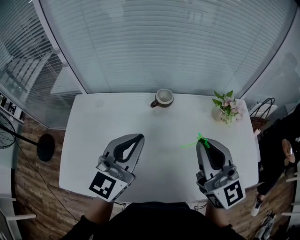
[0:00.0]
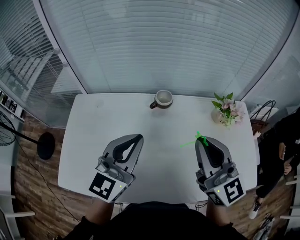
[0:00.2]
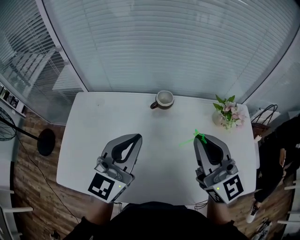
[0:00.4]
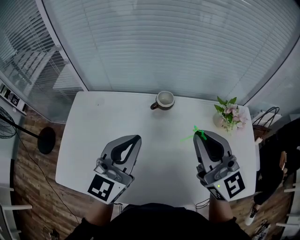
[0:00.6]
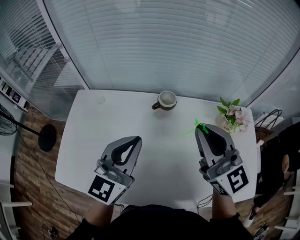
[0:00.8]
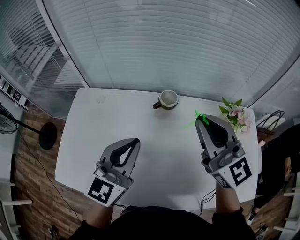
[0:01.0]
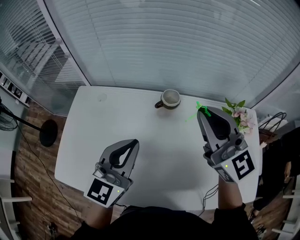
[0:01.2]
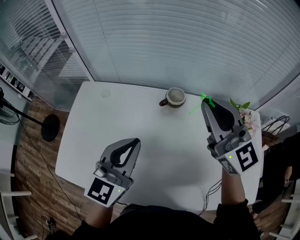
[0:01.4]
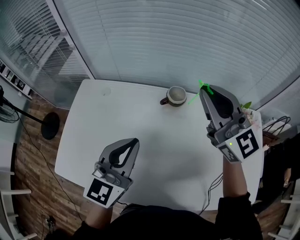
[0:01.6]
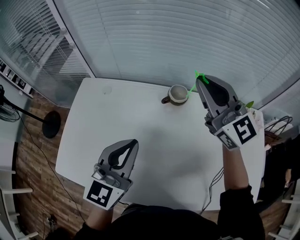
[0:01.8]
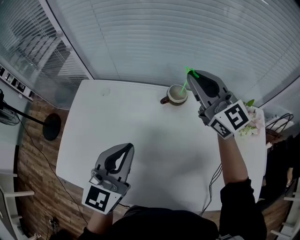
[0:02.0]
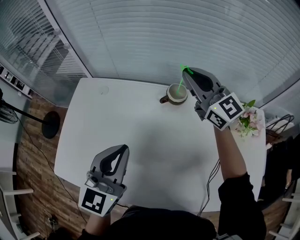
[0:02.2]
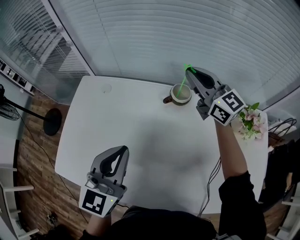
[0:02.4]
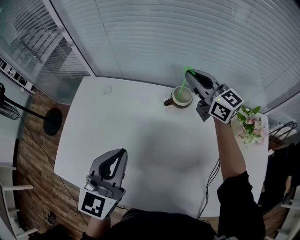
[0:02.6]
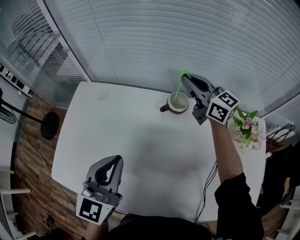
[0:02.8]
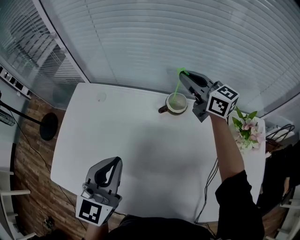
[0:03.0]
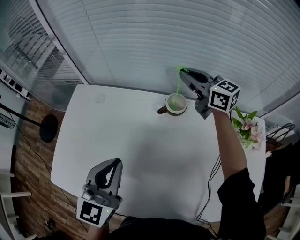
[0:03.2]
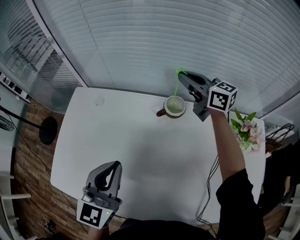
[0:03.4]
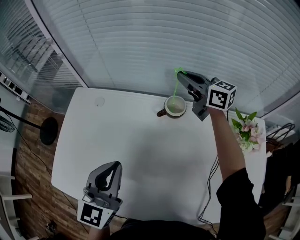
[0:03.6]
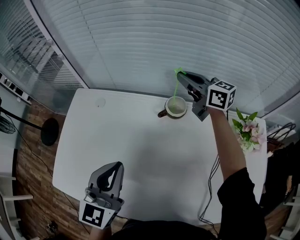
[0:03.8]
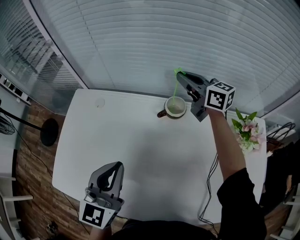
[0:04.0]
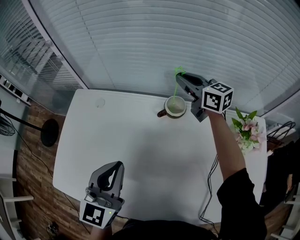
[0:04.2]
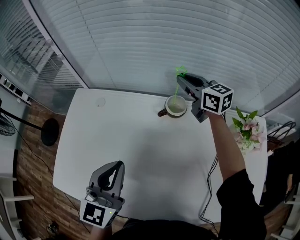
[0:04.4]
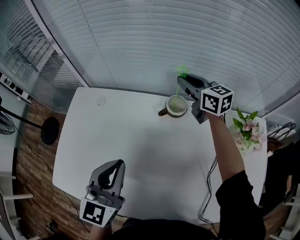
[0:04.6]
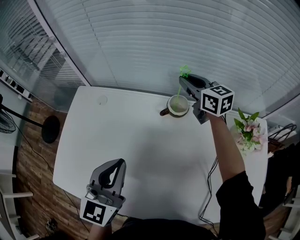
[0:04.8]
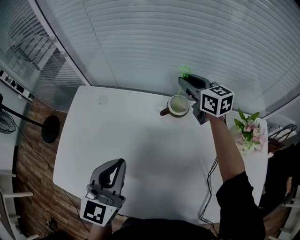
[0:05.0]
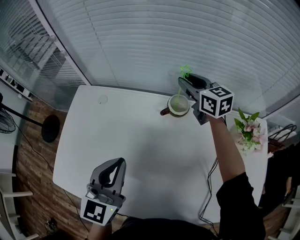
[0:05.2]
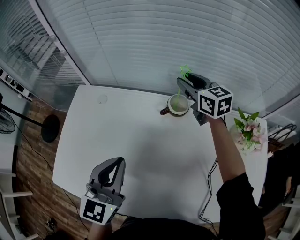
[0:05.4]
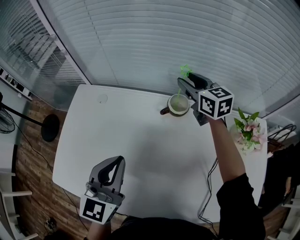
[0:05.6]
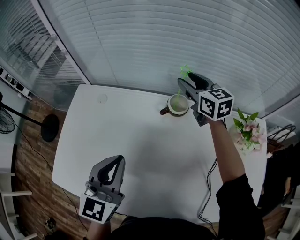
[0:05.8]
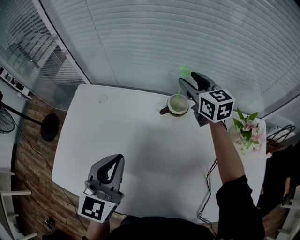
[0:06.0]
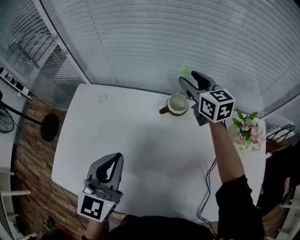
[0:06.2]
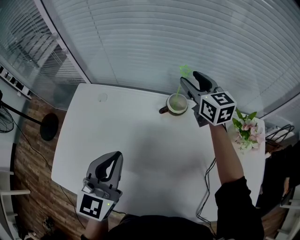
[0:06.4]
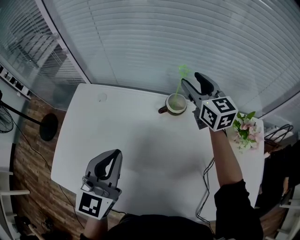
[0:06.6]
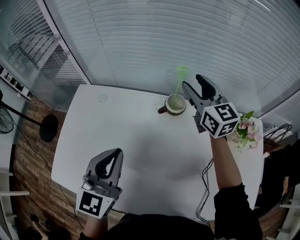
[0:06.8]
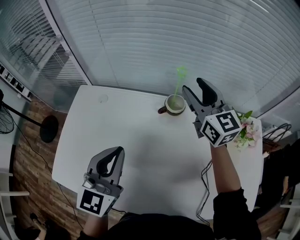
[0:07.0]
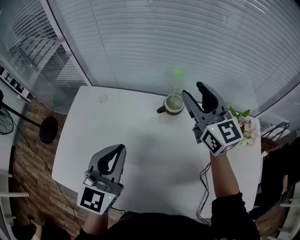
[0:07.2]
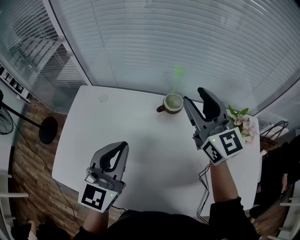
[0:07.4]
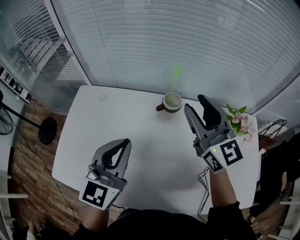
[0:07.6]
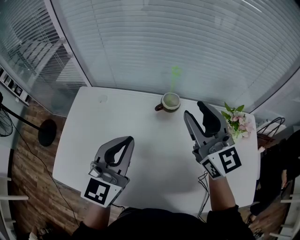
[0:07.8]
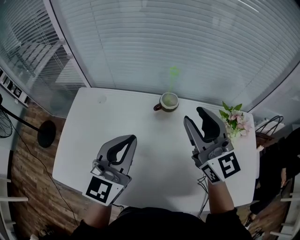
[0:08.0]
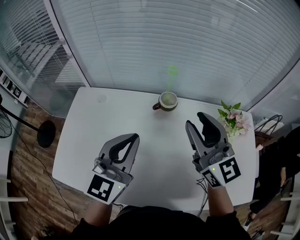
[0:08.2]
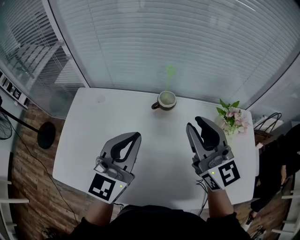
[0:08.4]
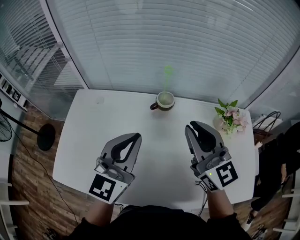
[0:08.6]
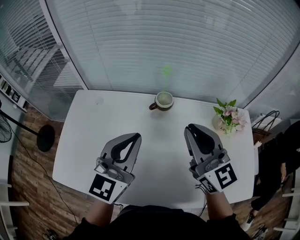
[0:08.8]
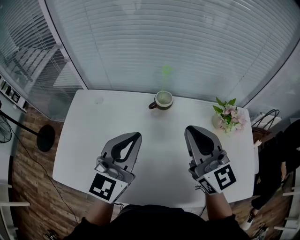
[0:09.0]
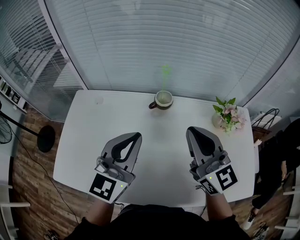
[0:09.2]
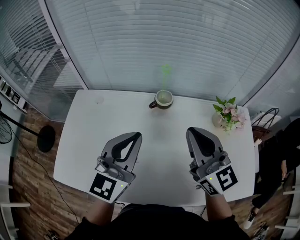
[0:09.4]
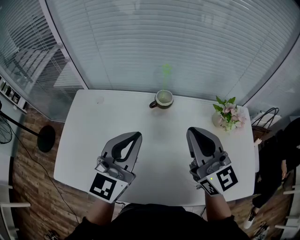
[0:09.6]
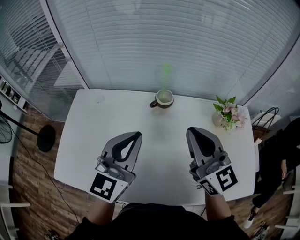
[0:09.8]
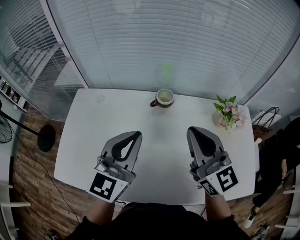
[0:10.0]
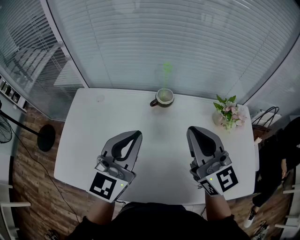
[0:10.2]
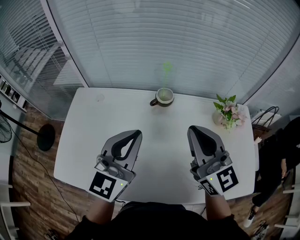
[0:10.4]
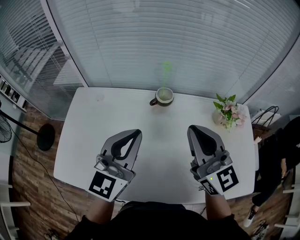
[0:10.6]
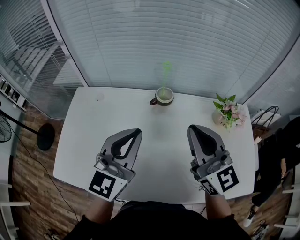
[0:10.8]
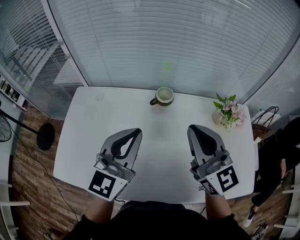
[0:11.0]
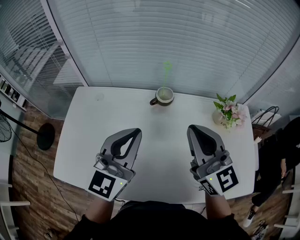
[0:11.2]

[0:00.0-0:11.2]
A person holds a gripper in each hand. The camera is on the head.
0:00.0 to 0:01.6: The right gripper goes roughly 15 cm forward, and turns by some 20 degrees.
0:01.6 to 0:03.2: The right gripper goes some 25 cm forward and downward, and rotates some 30 degrees.
0:03.2 to 0:04.8: The right gripper ends up approximately 5 cm from where it was.
0:04.8 to 0:06.4: The right gripper opens up.
0:06.4 to 0:08.0: The left gripper travels upward by some 5 cm, while the right gripper shifts approximately 25 cm backward and upward.
0:08.0 to 0:09.6: The right gripper moves backward, roughly 5 cm, and closes up.
0:09.6 to 0:11.2: The two grippers keep their place.

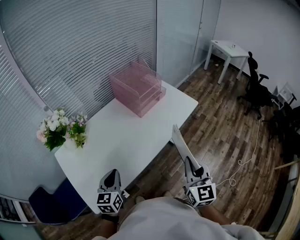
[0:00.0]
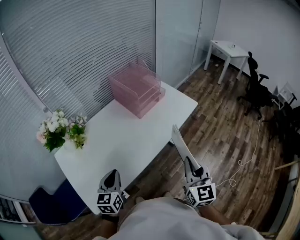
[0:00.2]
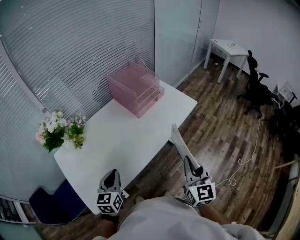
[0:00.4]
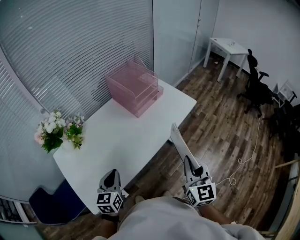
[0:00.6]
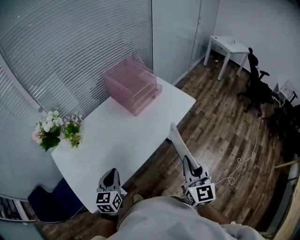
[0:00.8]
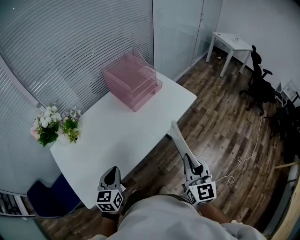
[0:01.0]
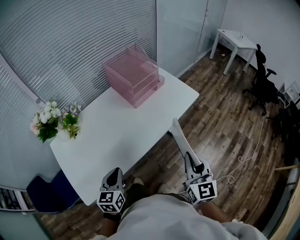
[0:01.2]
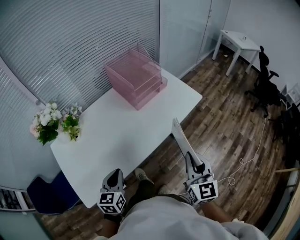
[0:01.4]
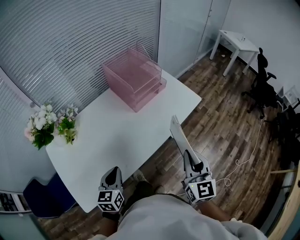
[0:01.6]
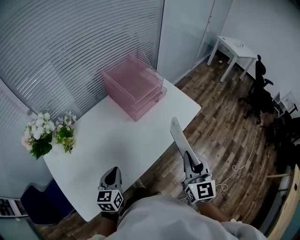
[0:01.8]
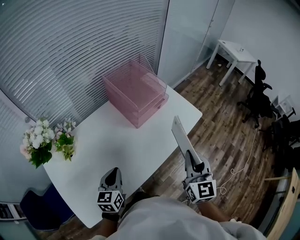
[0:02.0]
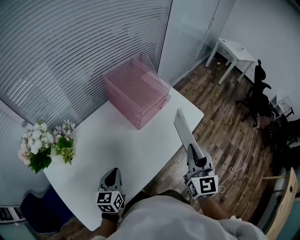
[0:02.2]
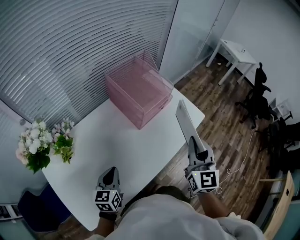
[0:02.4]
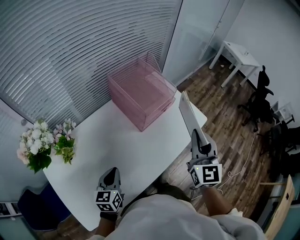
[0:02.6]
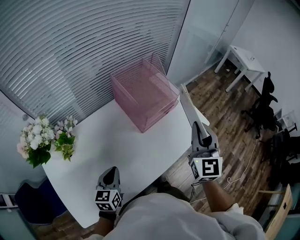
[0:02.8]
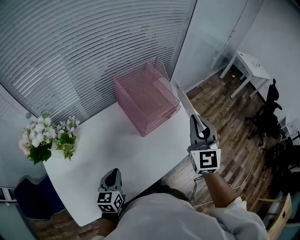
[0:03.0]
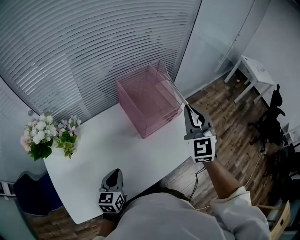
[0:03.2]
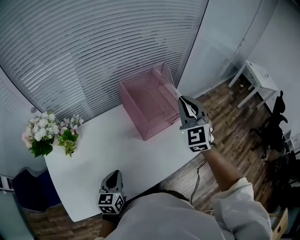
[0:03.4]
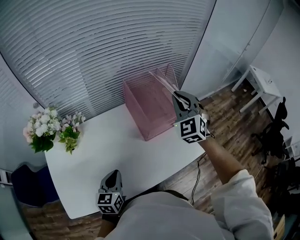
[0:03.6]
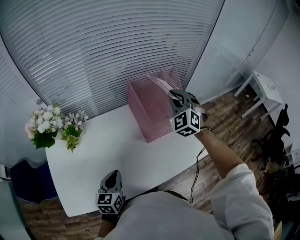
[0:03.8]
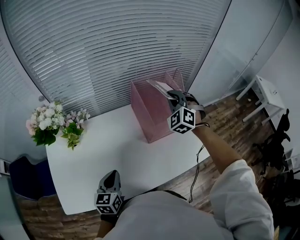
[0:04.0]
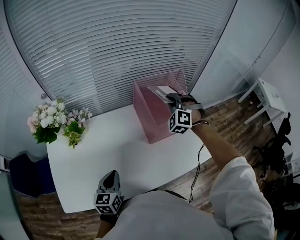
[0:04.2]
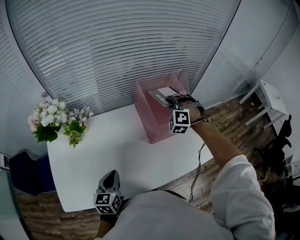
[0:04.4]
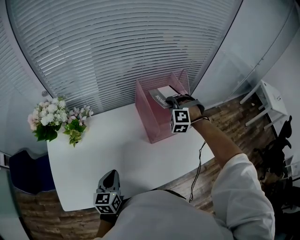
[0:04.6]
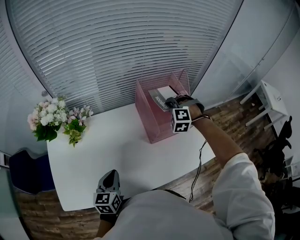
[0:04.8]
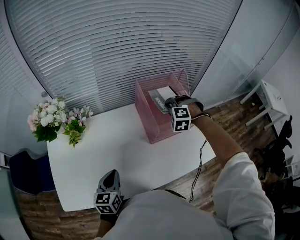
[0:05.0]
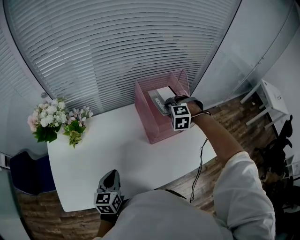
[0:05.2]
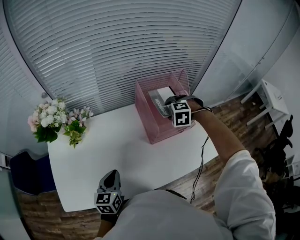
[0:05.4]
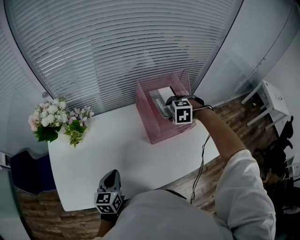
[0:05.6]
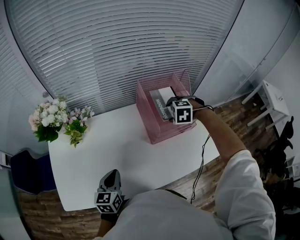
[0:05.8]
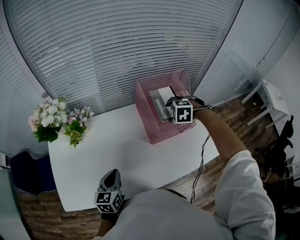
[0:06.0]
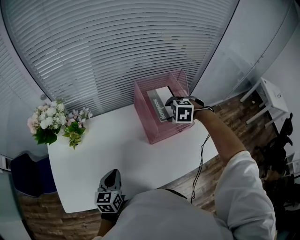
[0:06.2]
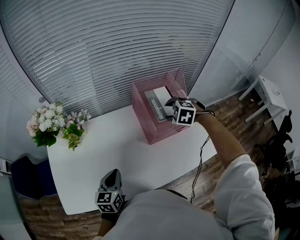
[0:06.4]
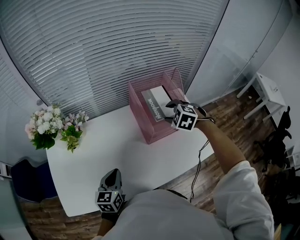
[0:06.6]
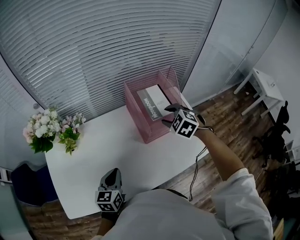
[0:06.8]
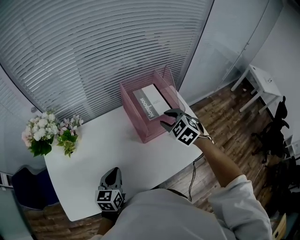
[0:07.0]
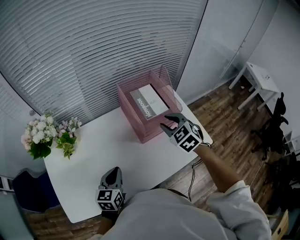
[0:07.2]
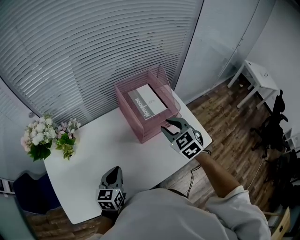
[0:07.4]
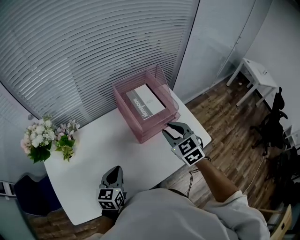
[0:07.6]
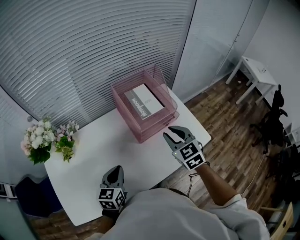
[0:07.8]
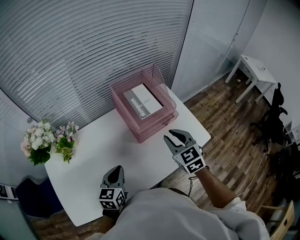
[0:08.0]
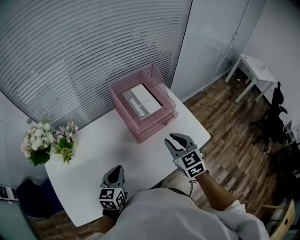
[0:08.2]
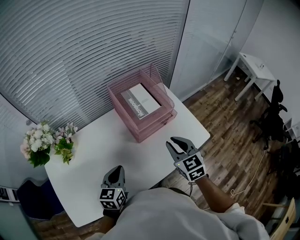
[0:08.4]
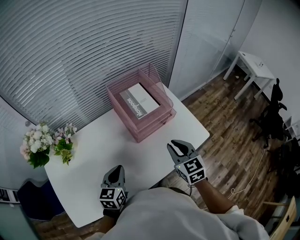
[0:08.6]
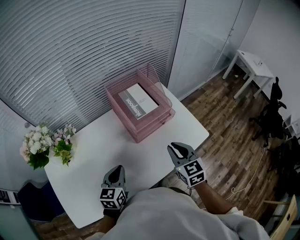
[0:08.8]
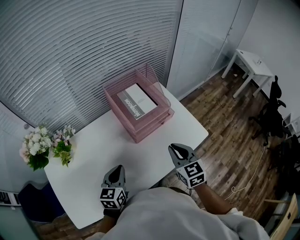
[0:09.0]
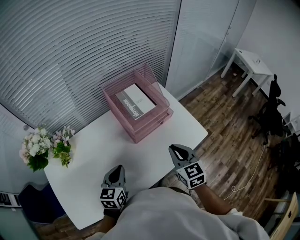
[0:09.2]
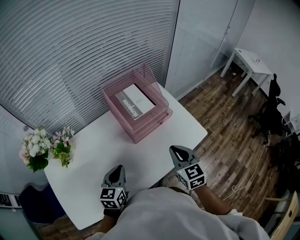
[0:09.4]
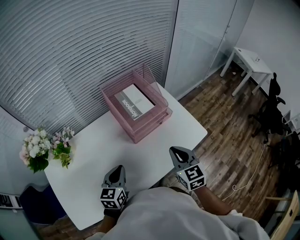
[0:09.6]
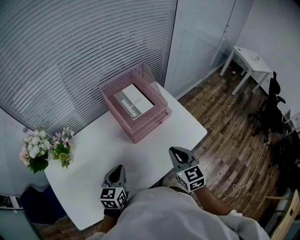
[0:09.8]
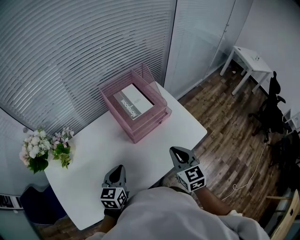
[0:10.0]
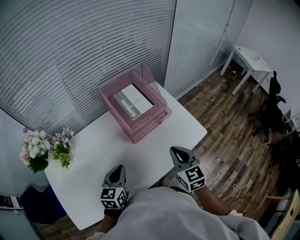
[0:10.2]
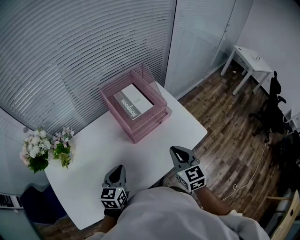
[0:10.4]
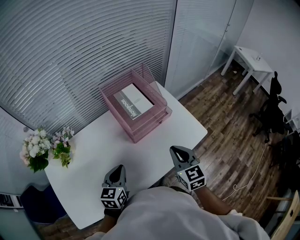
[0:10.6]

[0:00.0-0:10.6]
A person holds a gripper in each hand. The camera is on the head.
0:00.0 to 0:01.6: The left gripper goes about 10 cm to the right and forward. The right gripper travels forward by approximately 10 cm.
0:01.6 to 0:03.0: The right gripper travels forward by some 30 cm, and turns by about 20 degrees, while the left gripper travels forward by about 15 cm.
0:03.0 to 0:04.6: The right gripper is displaced forward, downward and to the left by approximately 30 cm, and rotates around the line of its fingers by some 70 degrees, counterclockwise from behind.
0:04.6 to 0:06.0: The right gripper changes place by approximately 5 cm, tips its fingers downward by about 40 degrees, and opens up.
0:06.0 to 0:07.6: The left gripper shifts by about 5 cm; the right gripper changes place by some 15 cm, points its fingers some 40 degrees further upward, and closes its fingers.
0:07.6 to 0:09.0: The right gripper heads backward, covering about 10 cm, and rotates about 20 degrees.
0:09.0 to 0:10.6: The grippers make only small movements.

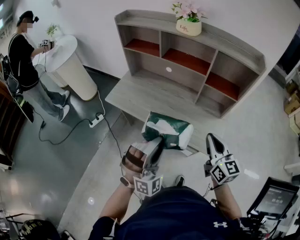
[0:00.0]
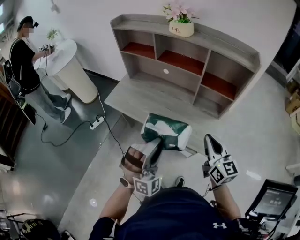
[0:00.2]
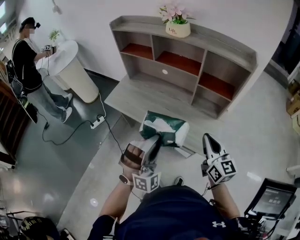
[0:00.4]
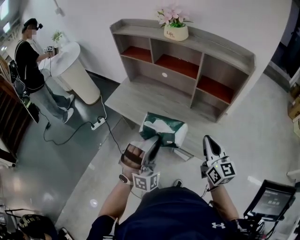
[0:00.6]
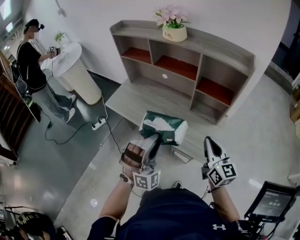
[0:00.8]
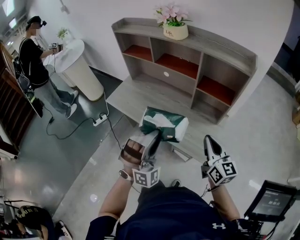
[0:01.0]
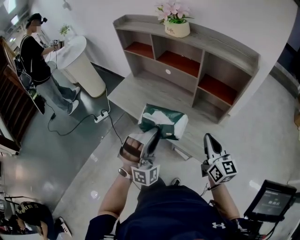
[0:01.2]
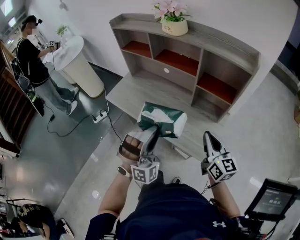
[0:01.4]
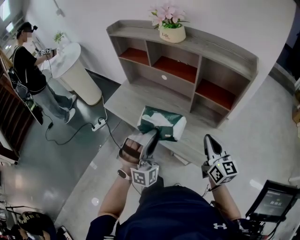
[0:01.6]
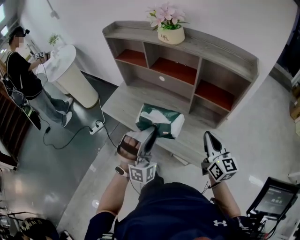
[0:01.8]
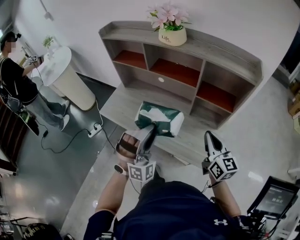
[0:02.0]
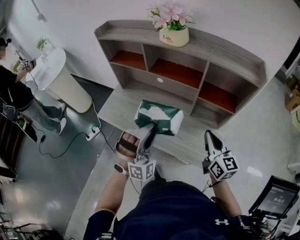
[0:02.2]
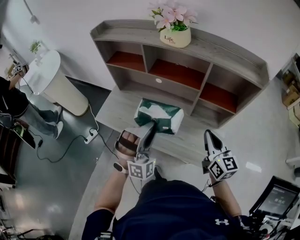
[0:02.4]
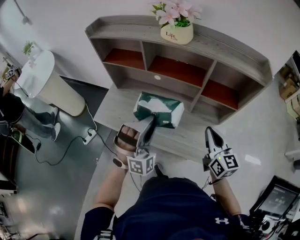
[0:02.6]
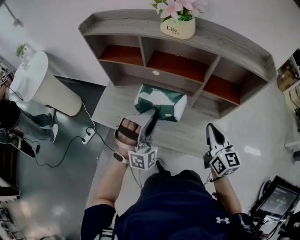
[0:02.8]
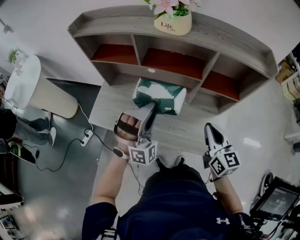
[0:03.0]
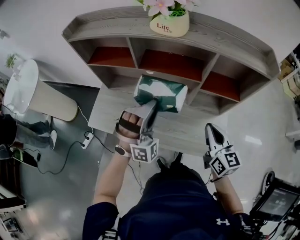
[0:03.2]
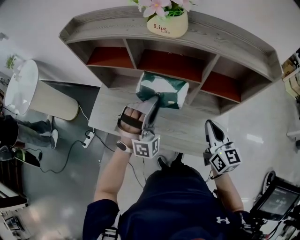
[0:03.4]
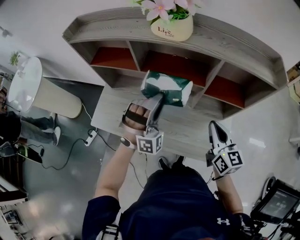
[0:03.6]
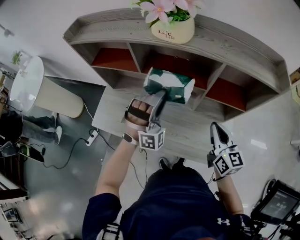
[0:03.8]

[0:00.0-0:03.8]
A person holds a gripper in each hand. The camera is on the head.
0:00.0 to 0:01.2: Both grippers travel together to the right, about 10 cm.
0:01.2 to 0:02.6: Both grippers travel together forward and to the left, about 20 cm.
0:02.6 to 0:03.8: The right gripper goes some 10 cm forward; the left gripper heads forward, covering some 15 cm.
